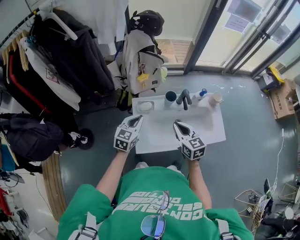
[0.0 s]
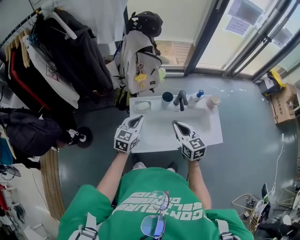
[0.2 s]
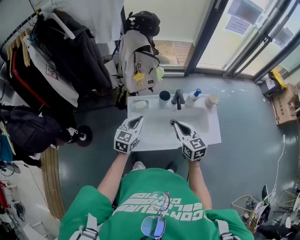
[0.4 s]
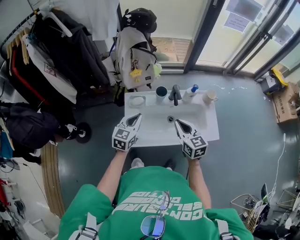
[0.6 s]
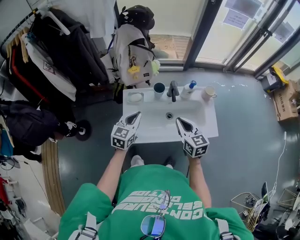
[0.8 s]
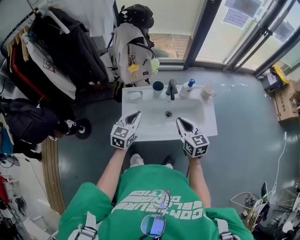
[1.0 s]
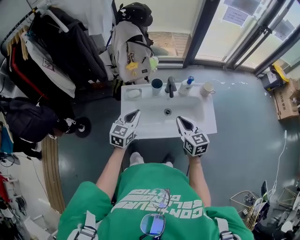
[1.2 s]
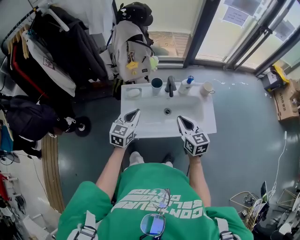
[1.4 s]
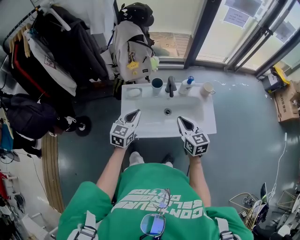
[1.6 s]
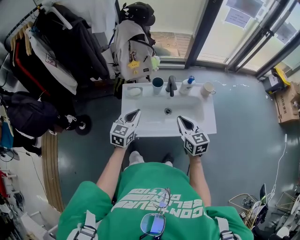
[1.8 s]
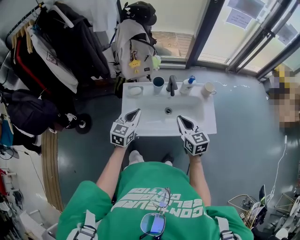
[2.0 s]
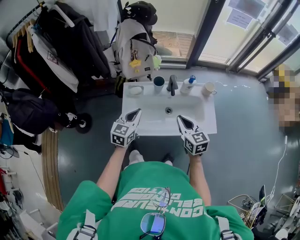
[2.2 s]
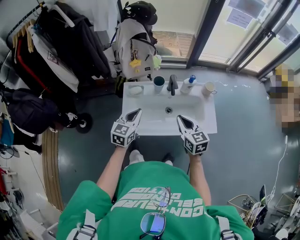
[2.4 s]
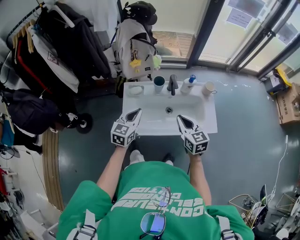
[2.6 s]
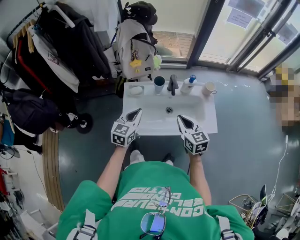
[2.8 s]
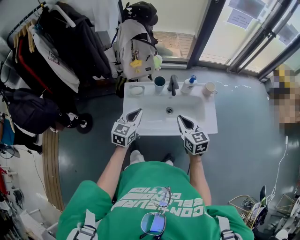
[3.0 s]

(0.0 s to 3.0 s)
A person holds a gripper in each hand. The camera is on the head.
0.0 s - 1.6 s: The right gripper travels to the right by some 15 cm, while the left gripper moves to the right and backward, roughly 10 cm.
1.6 s - 3.0 s: Both grippers stay about where they are.

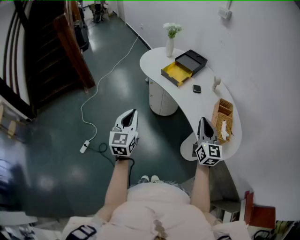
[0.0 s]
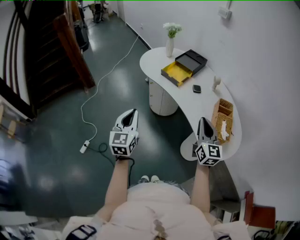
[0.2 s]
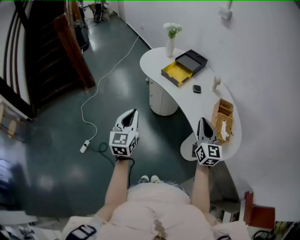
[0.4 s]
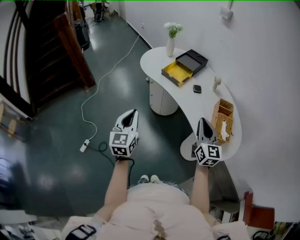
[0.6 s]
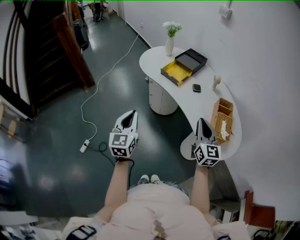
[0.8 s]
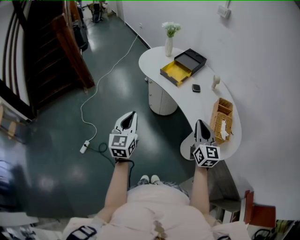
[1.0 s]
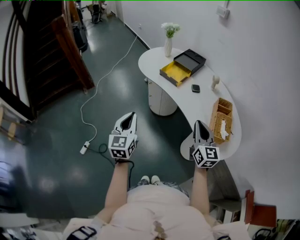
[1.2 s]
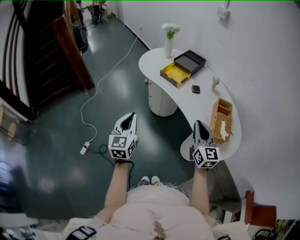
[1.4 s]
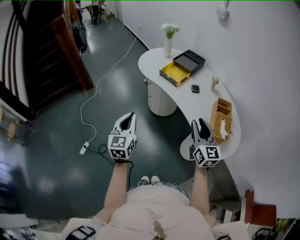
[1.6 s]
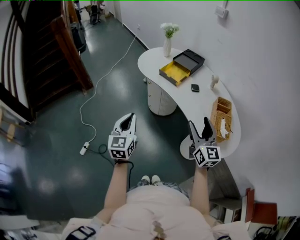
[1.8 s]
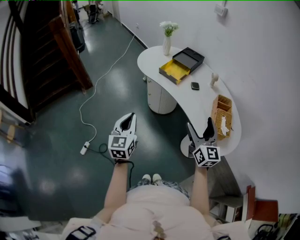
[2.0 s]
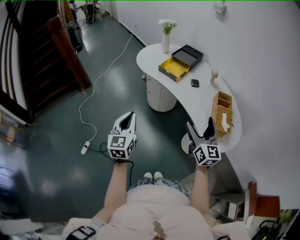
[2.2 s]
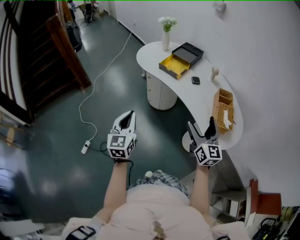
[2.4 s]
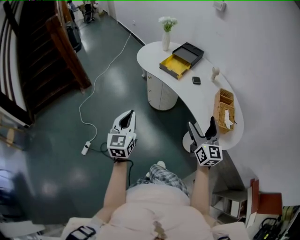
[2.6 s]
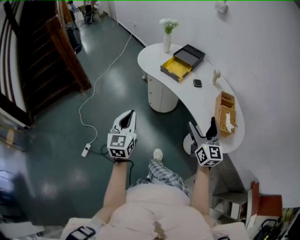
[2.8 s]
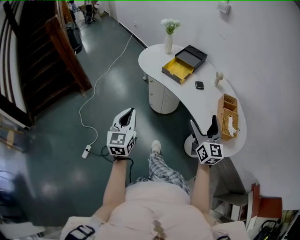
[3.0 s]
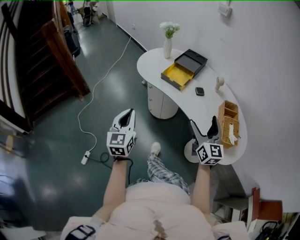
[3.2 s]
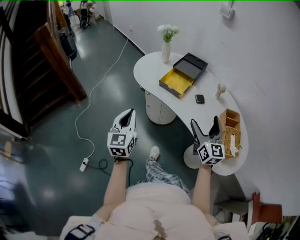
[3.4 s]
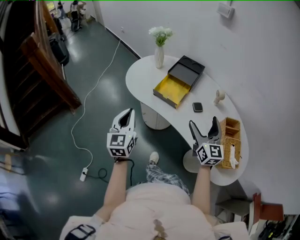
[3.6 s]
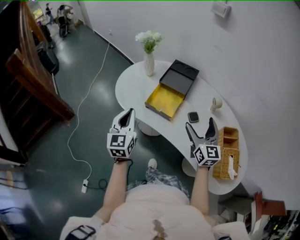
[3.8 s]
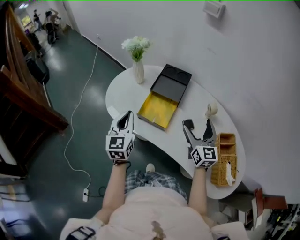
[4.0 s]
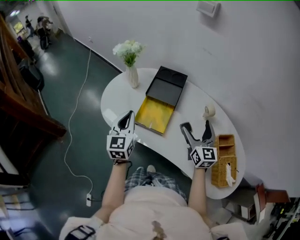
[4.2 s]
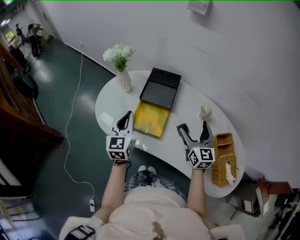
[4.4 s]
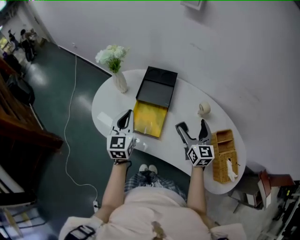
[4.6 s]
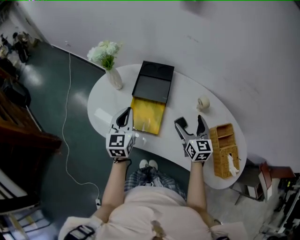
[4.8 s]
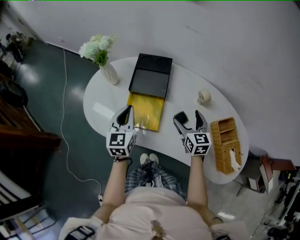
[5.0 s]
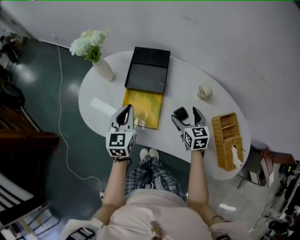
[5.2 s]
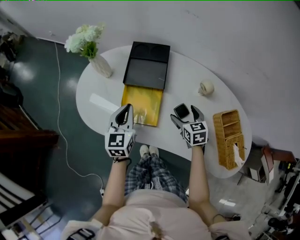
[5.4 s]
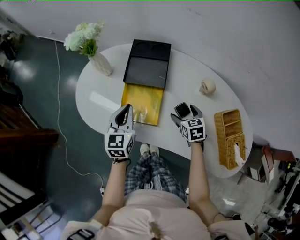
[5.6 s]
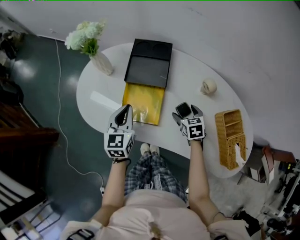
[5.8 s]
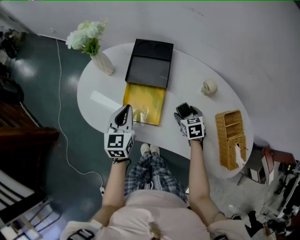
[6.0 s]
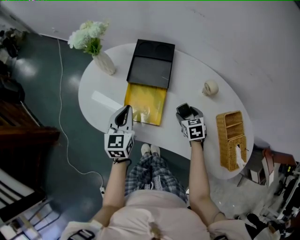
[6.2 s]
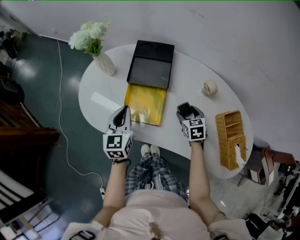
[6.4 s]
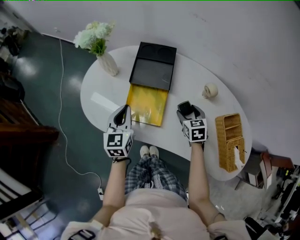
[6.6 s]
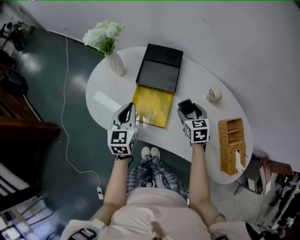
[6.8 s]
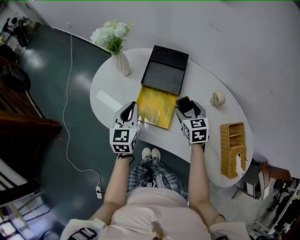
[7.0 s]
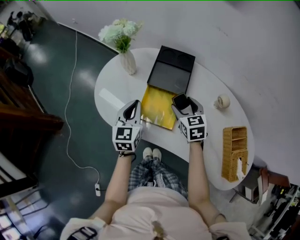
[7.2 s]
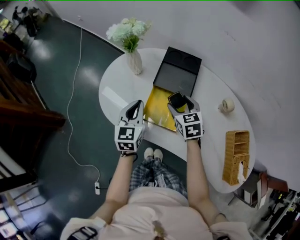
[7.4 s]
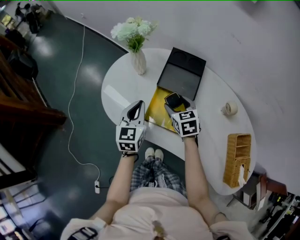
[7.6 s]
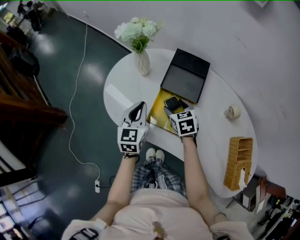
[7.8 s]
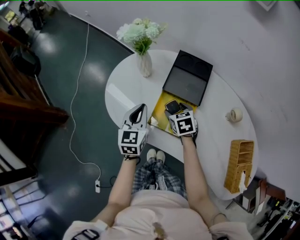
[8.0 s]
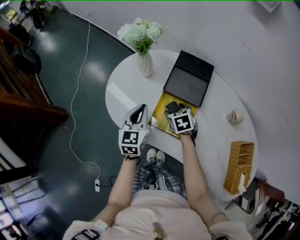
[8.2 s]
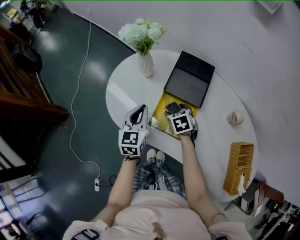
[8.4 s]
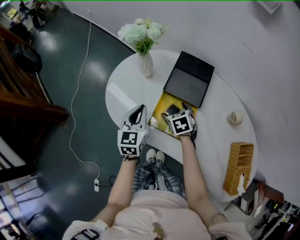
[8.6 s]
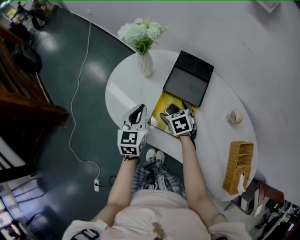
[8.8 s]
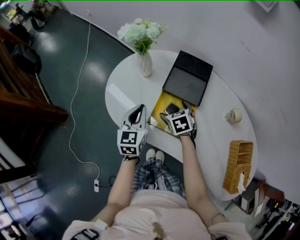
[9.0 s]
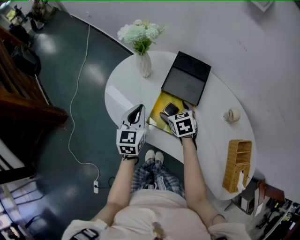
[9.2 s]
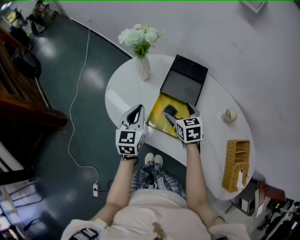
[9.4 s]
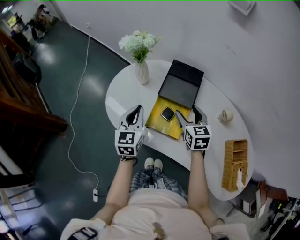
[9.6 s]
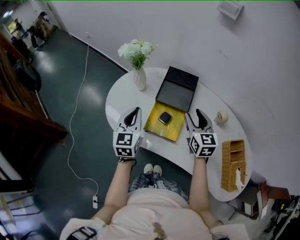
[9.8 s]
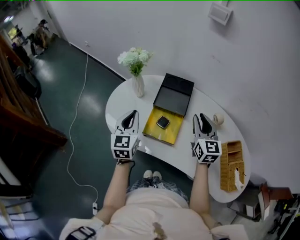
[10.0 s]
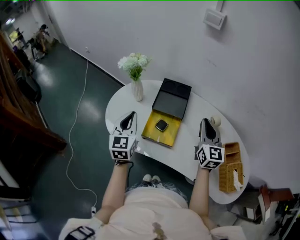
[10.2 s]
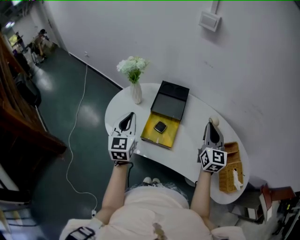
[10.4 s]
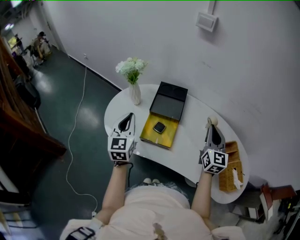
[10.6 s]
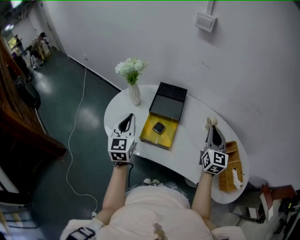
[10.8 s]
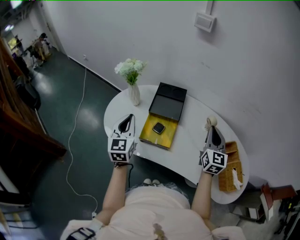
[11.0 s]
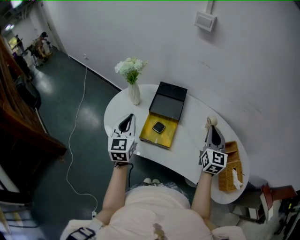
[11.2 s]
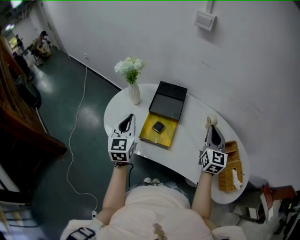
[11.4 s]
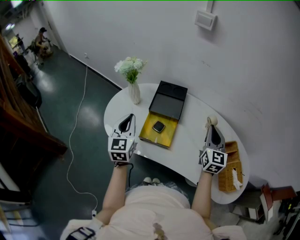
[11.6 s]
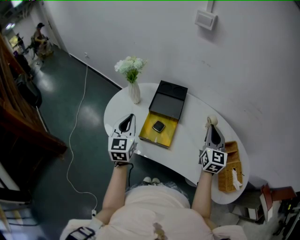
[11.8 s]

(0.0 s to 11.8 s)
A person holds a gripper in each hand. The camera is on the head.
0.0 s - 1.4 s: There are only small adjustments of the grippers.
1.4 s - 3.0 s: The right gripper opens up. Meanwhile the left gripper shifts by roughly 5 cm.
3.0 s - 4.4 s: The pair of grippers is taken forward, roughly 50 cm. The right gripper changes its angle by approximately 20 degrees. The left gripper rotates some 20 degrees.
4.4 s - 6.0 s: The right gripper travels downward by approximately 25 cm, and tilts its fingers some 50 degrees downward; the left gripper is displaced downward by approximately 10 cm.
6.0 s - 7.4 s: The left gripper heads to the left, covering roughly 5 cm. The right gripper moves to the left, upward and forward, some 20 cm, and turns by about 20 degrees.
7.4 s - 8.8 s: The right gripper moves downward and to the left, approximately 10 cm, and rotates roughly 20 degrees.
8.8 s - 10.4 s: The right gripper travels upward, to the right and backward by roughly 35 cm, points its fingers about 60 degrees further upward, and closes up. The left gripper heads upward, covering approximately 15 cm.
10.4 s - 11.8 s: The grippers move only a little.

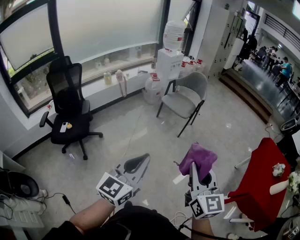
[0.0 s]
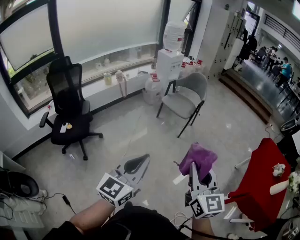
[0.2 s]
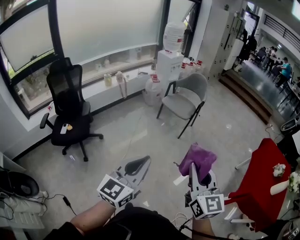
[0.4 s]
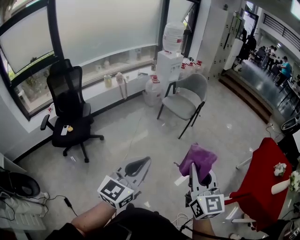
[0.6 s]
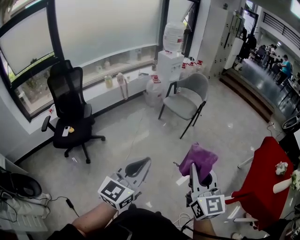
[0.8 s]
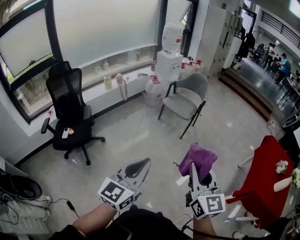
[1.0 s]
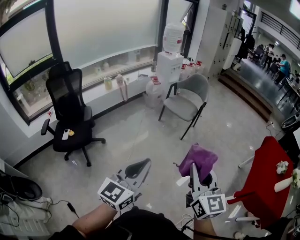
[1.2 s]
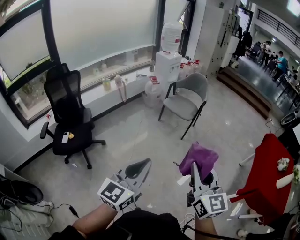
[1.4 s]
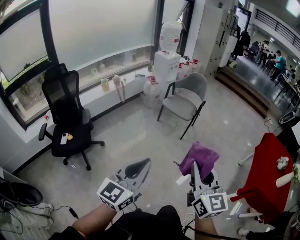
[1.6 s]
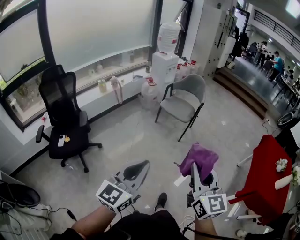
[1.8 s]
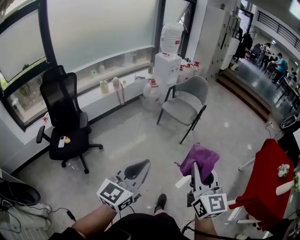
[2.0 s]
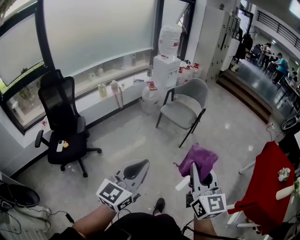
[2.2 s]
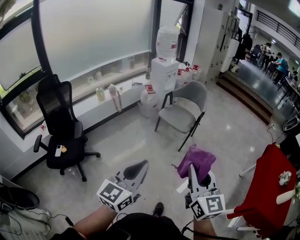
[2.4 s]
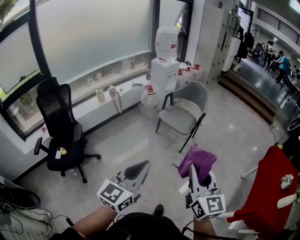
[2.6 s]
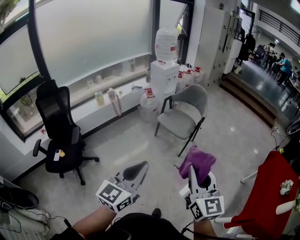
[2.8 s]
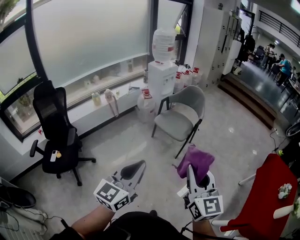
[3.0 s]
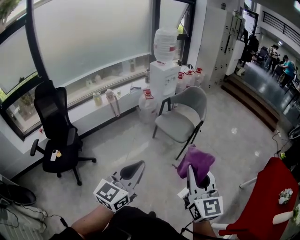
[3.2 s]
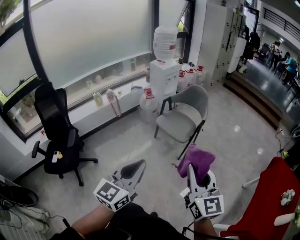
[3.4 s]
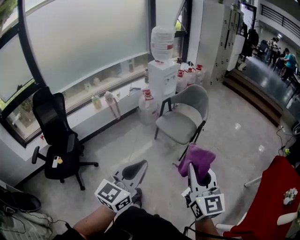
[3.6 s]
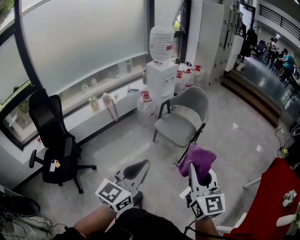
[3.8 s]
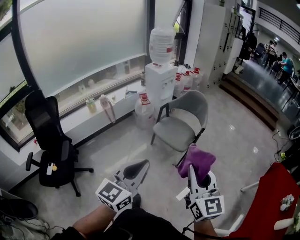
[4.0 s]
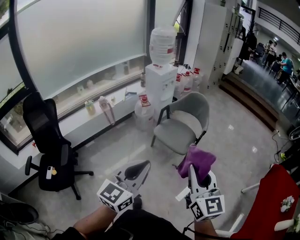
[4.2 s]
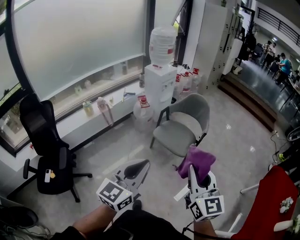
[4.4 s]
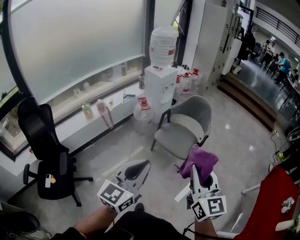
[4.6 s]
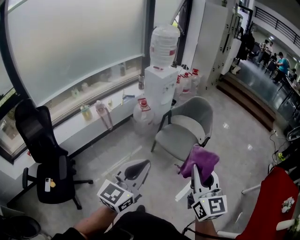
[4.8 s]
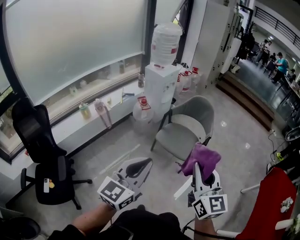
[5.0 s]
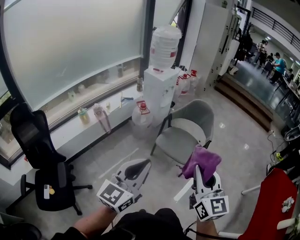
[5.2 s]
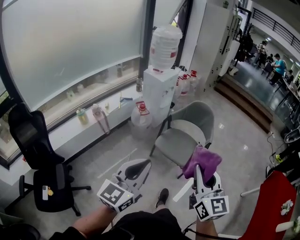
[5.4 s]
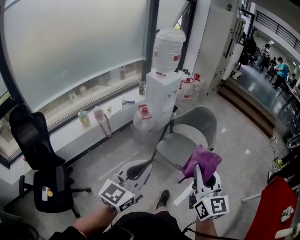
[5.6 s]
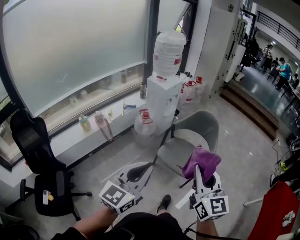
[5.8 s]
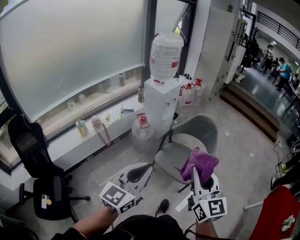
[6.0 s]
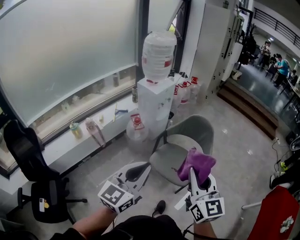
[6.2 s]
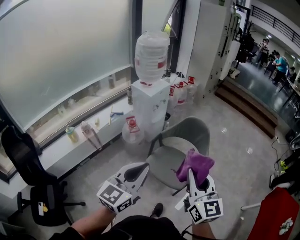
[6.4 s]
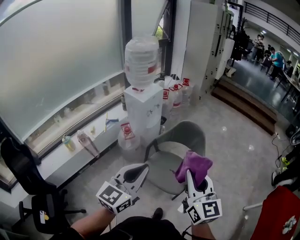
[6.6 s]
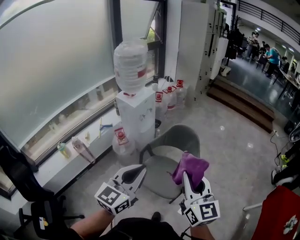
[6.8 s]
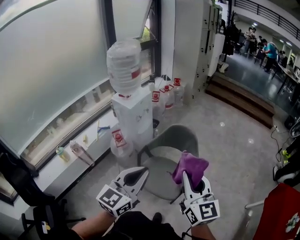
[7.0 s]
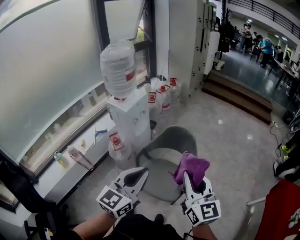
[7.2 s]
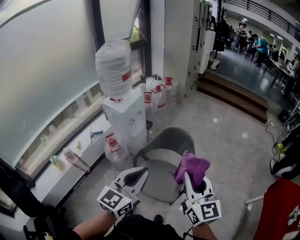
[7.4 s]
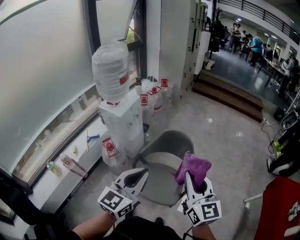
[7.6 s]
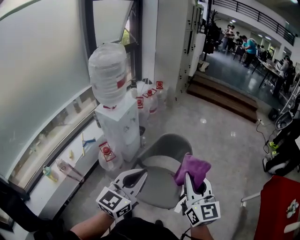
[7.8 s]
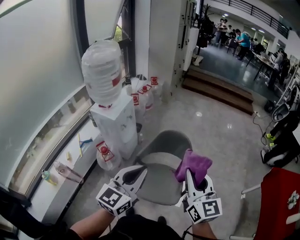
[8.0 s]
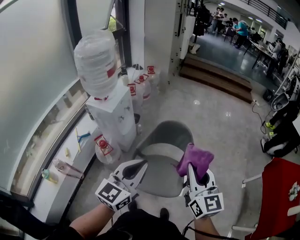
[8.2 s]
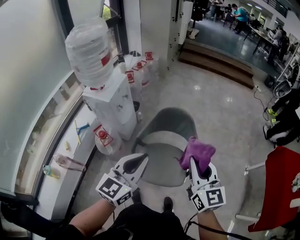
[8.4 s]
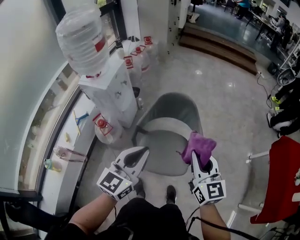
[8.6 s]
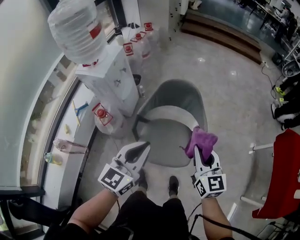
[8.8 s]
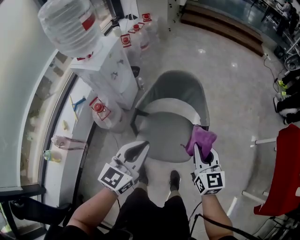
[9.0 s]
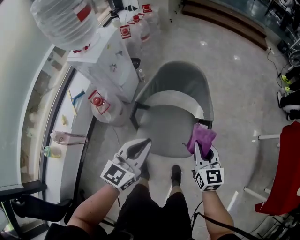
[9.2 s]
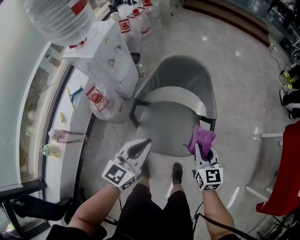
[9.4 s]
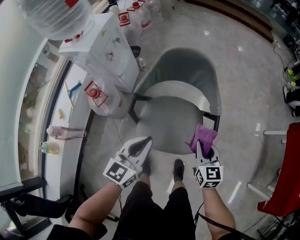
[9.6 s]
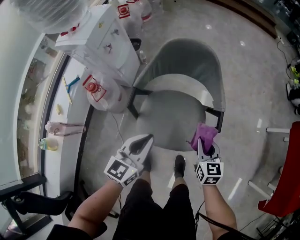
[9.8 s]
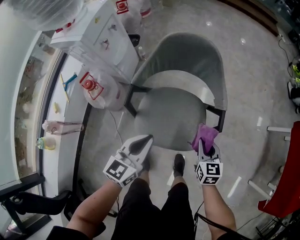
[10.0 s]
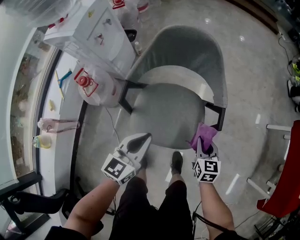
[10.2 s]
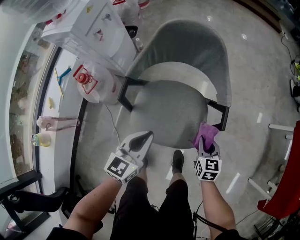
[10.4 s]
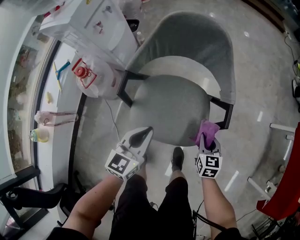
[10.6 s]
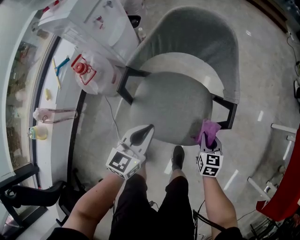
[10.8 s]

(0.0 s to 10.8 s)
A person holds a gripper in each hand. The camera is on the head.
0.0 s - 1.6 s: The grippers both shift to the left by some 5 cm.
1.6 s - 3.0 s: The two grippers go about 25 cm forward.
3.0 s - 4.6 s: Both grippers move forward, approximately 25 cm.
4.6 s - 6.2 s: The two grippers go approximately 25 cm forward.
6.2 s - 7.8 s: Both grippers move forward, roughly 25 cm.
7.8 s - 9.2 s: Both grippers travel together downward, about 25 cm. The right gripper turns by approximately 20 degrees.
9.2 s - 10.8 s: Both grippers move downward, about 30 cm. The right gripper changes its angle by approximately 20 degrees.
